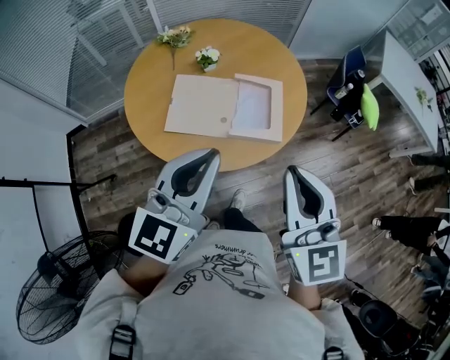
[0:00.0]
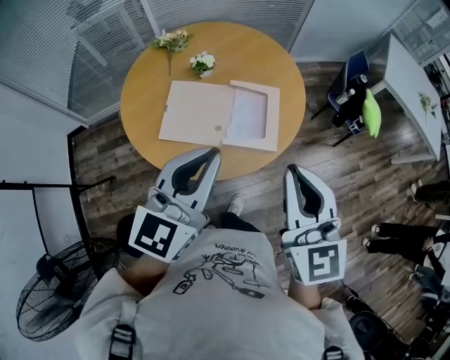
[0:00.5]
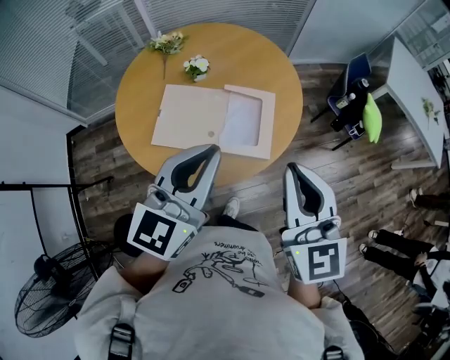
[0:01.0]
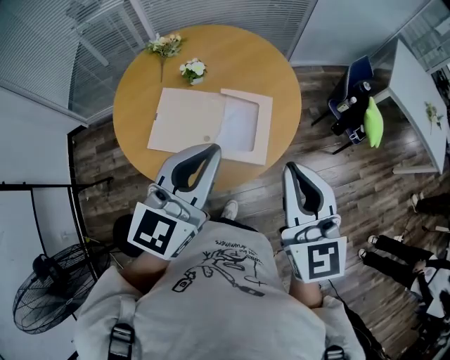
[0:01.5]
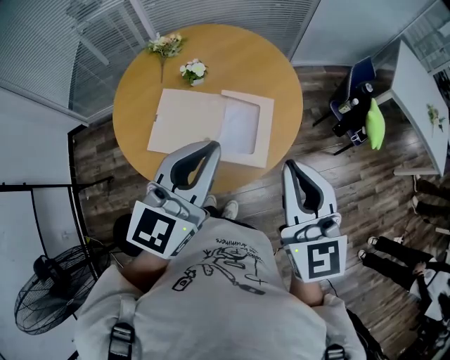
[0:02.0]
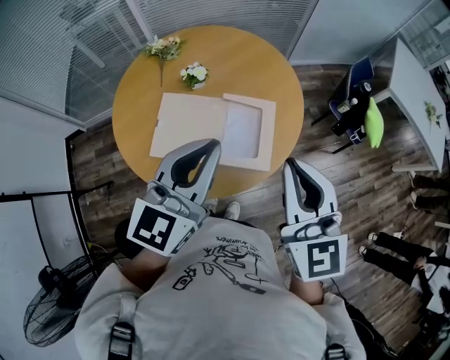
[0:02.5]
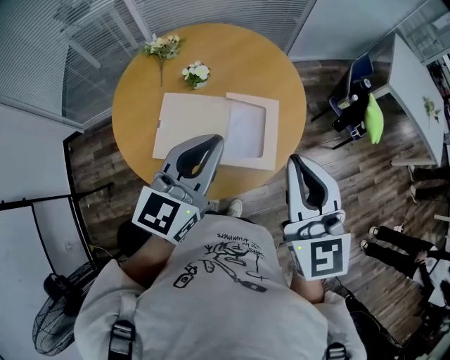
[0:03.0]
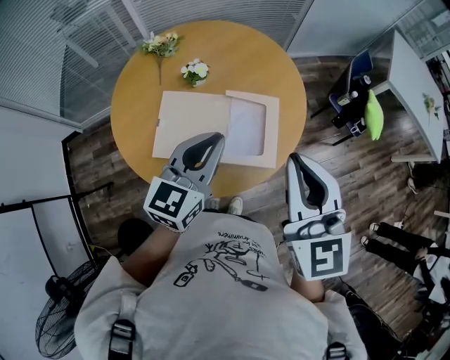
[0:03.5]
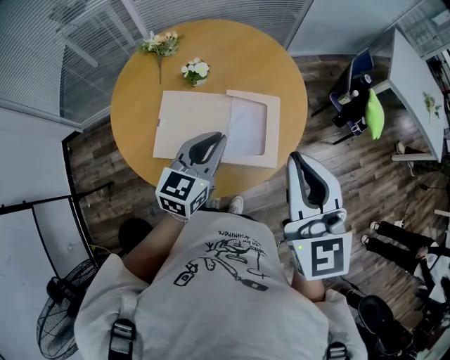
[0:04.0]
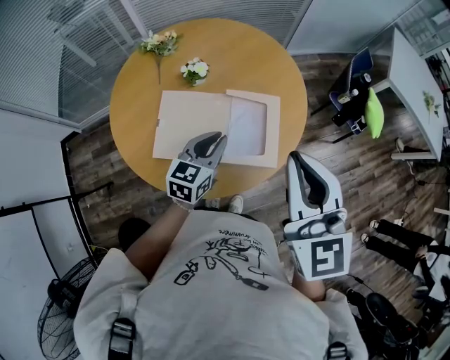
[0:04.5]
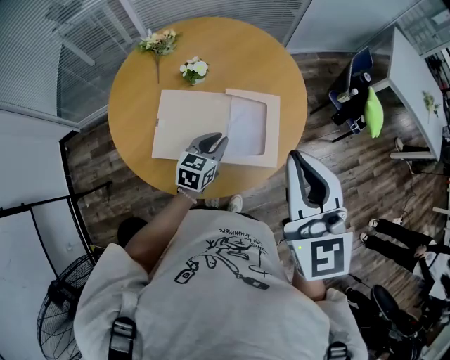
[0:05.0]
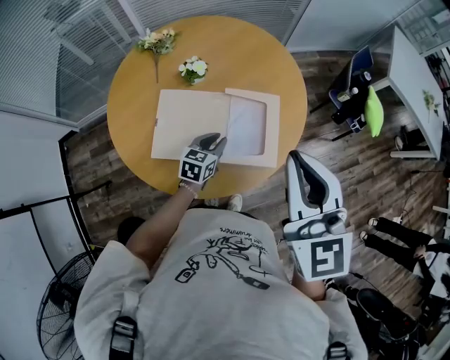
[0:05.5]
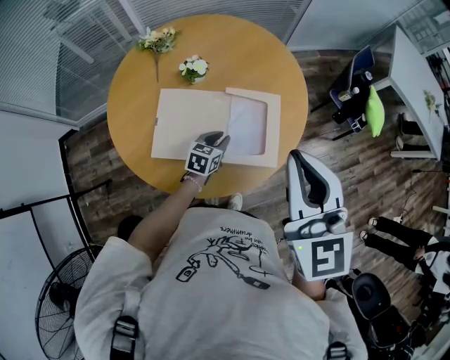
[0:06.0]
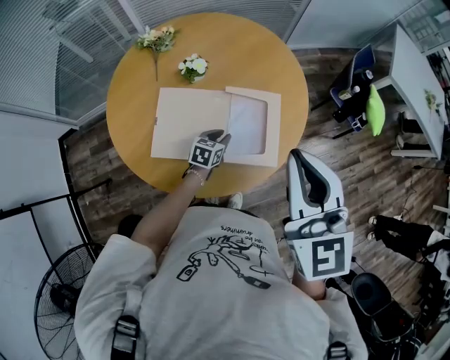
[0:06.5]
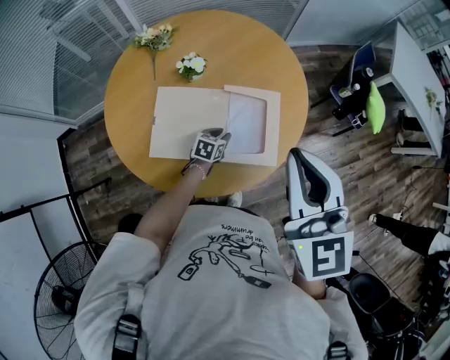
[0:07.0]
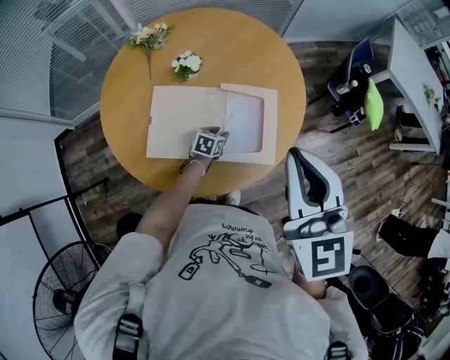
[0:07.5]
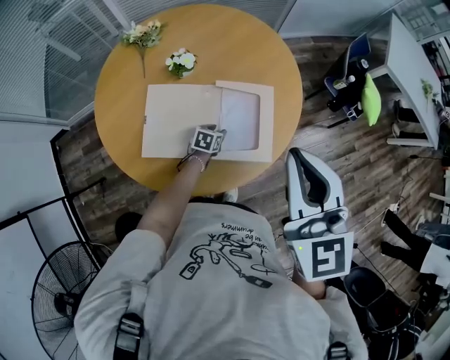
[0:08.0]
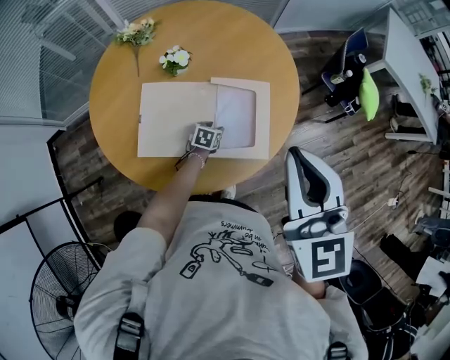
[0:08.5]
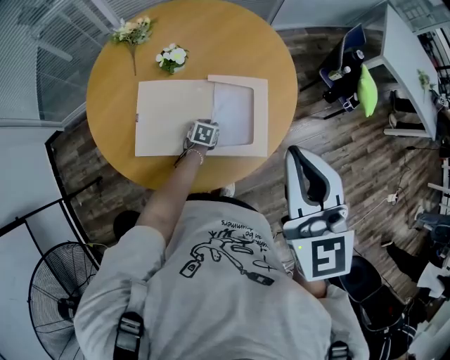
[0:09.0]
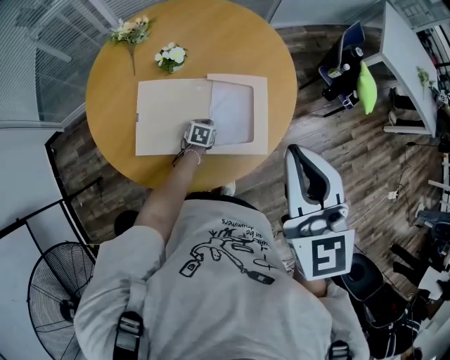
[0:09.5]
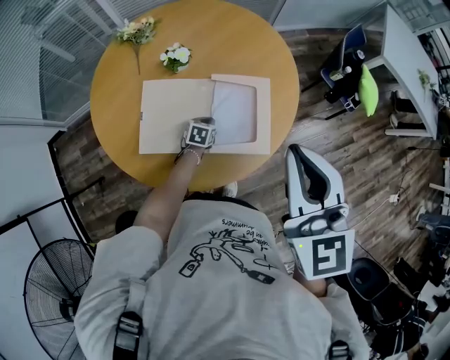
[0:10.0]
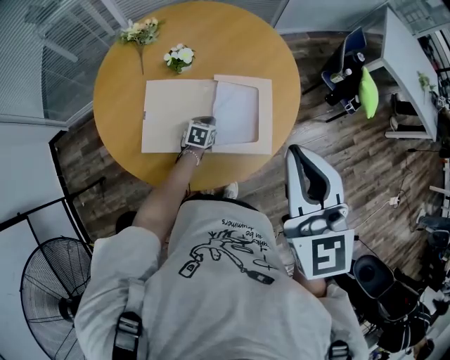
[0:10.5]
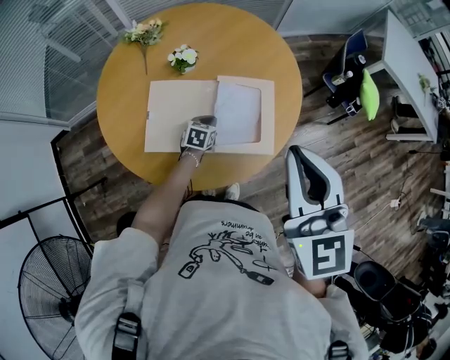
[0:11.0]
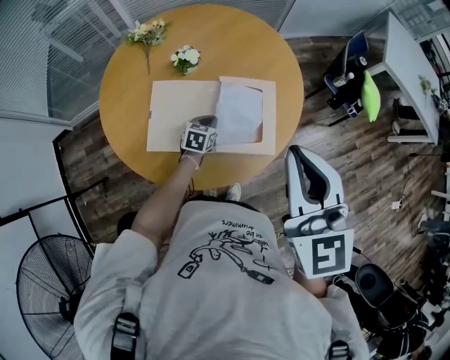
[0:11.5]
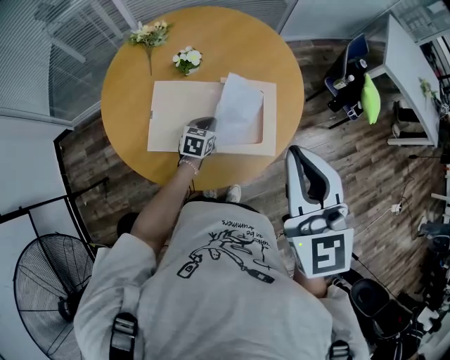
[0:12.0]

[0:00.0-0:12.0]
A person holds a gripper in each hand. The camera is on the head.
0.0 to 2.0 s: Both grippers move forward and to the right, some 20 cm.
2.0 to 4.0 s: The left gripper shifts approximately 20 cm downward, forward and to the left. The right gripper shifts approximately 5 cm to the left.
4.0 to 6.0 s: The left gripper shifts roughly 25 cm downward, and changes its angle by some 20 degrees.
6.0 to 8.0 s: The left gripper travels downward by some 15 cm.
8.0 to 10.0 s: The left gripper closes up.
10.0 to 12.0 s: The left gripper goes some 10 cm upward.

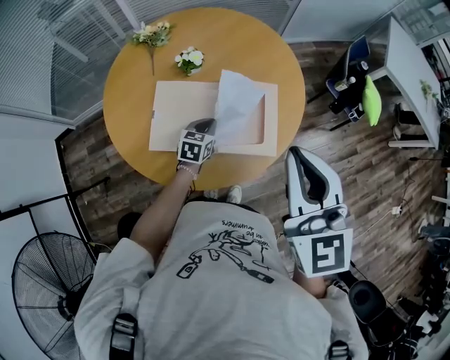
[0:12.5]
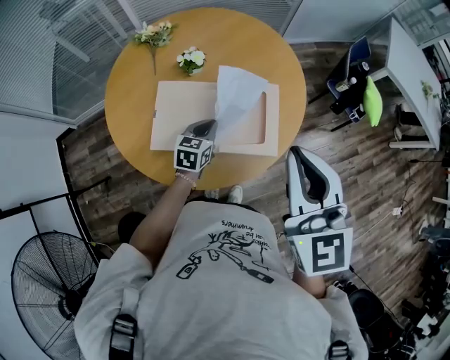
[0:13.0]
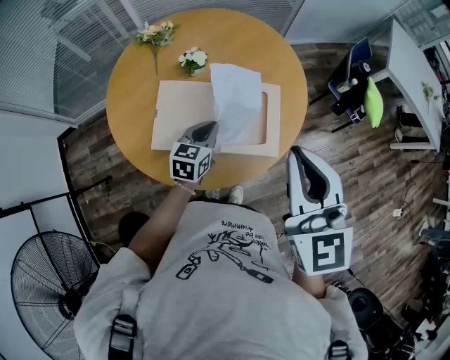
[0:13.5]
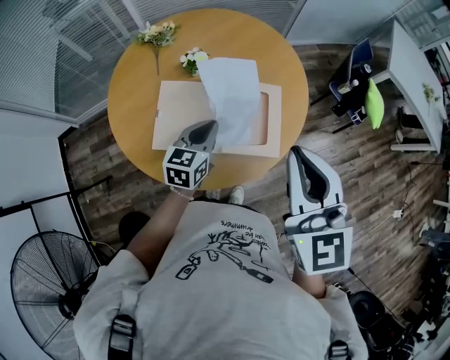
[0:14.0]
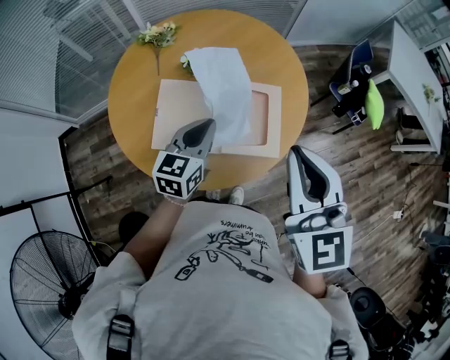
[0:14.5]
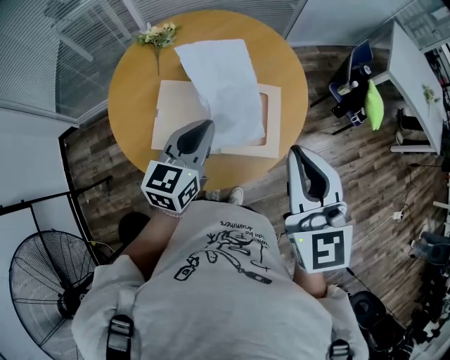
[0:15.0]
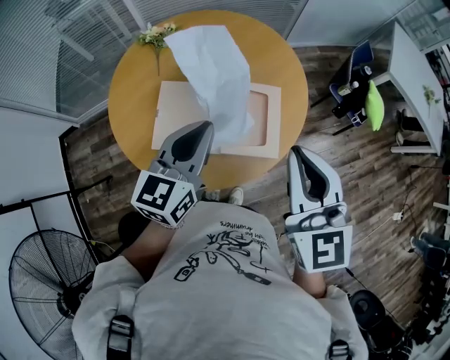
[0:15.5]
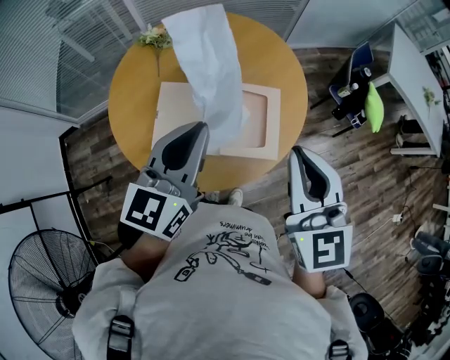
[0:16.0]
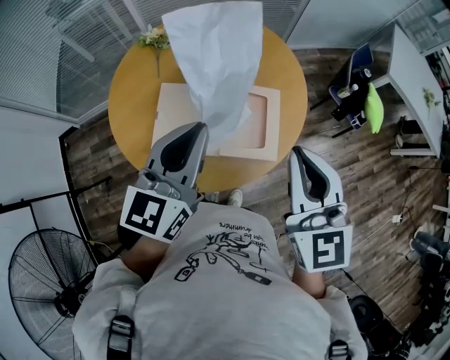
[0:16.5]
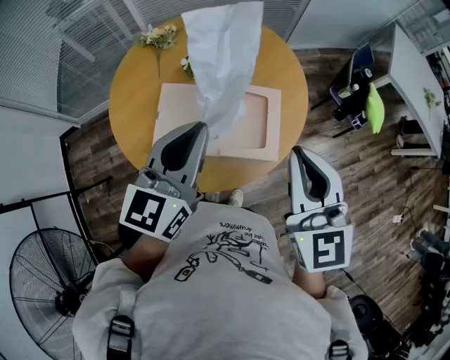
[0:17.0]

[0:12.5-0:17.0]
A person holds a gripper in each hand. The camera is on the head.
12.5 to 14.5 s: The left gripper travels upward by about 20 cm.
14.5 to 17.0 s: The left gripper travels upward by approximately 15 cm.

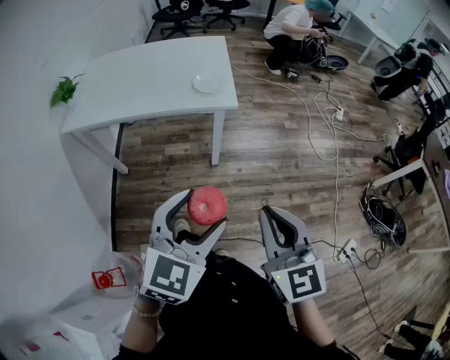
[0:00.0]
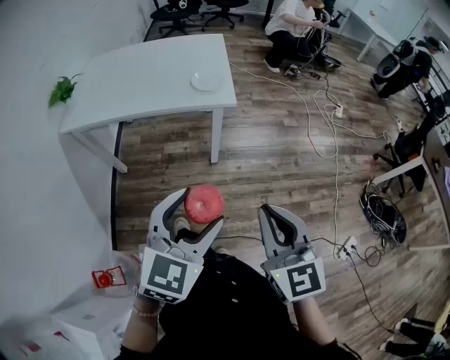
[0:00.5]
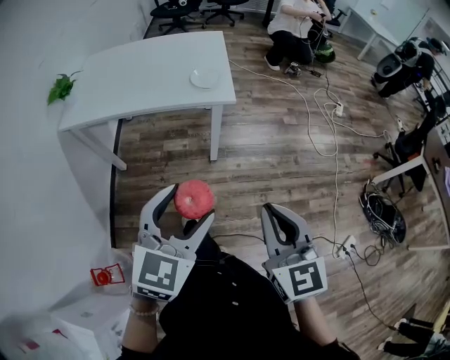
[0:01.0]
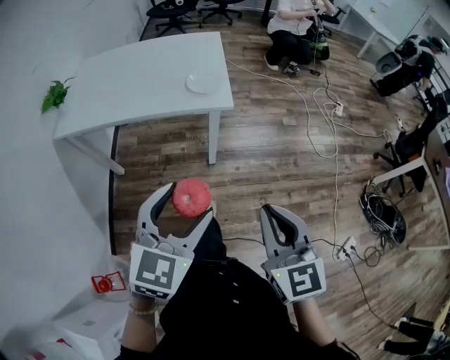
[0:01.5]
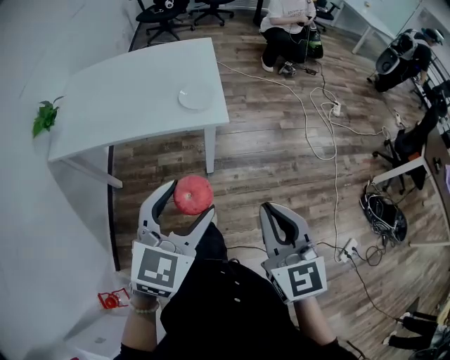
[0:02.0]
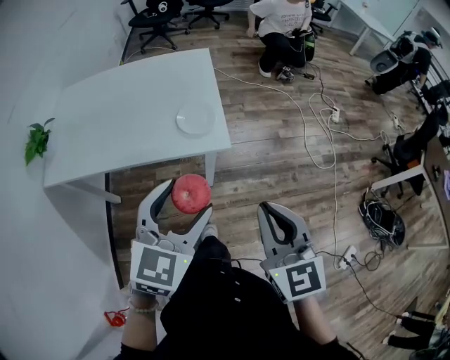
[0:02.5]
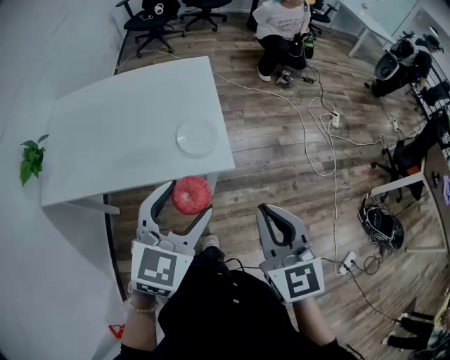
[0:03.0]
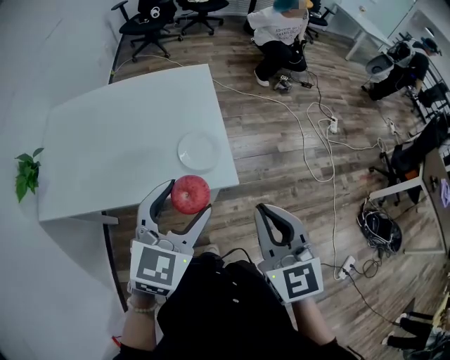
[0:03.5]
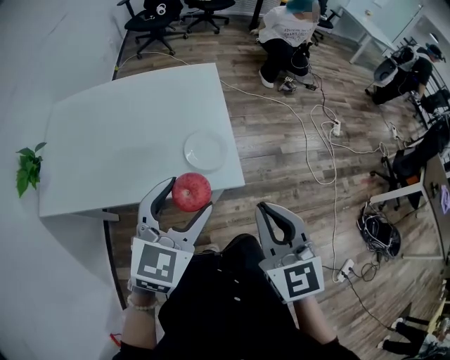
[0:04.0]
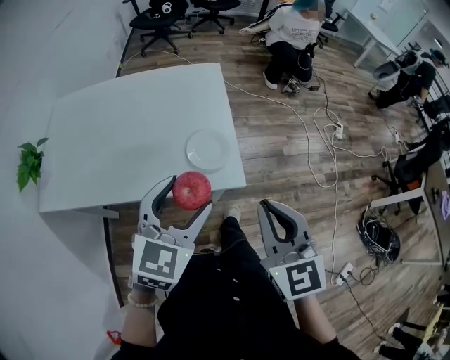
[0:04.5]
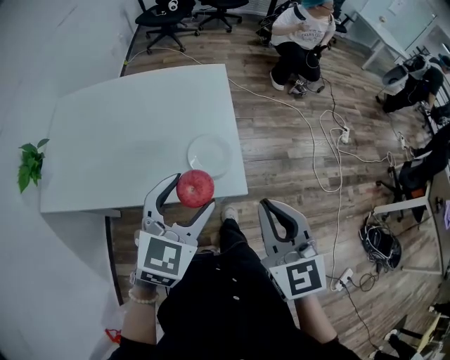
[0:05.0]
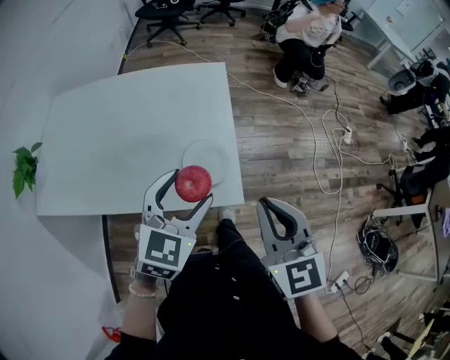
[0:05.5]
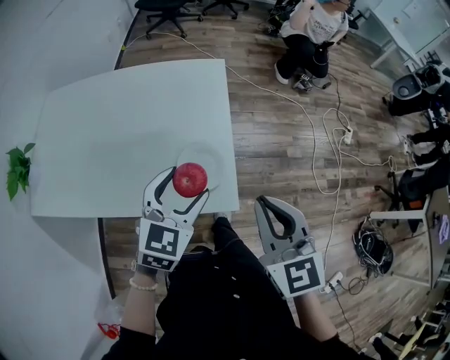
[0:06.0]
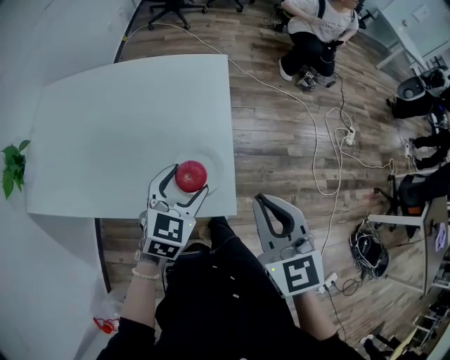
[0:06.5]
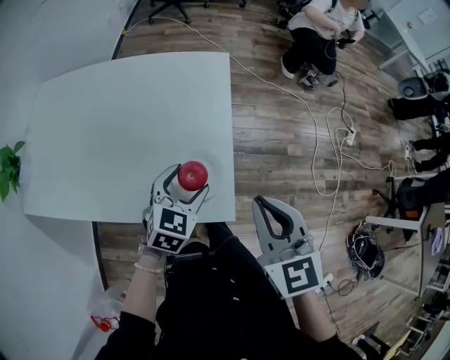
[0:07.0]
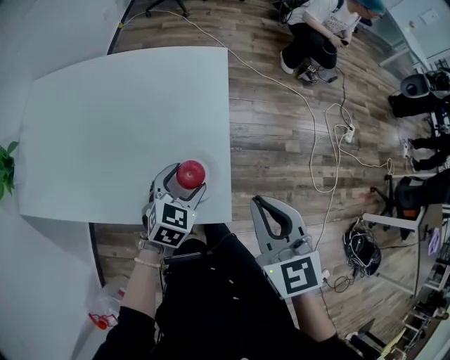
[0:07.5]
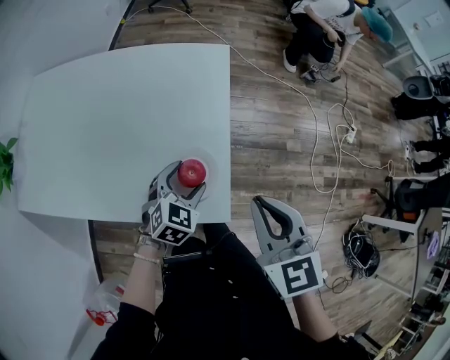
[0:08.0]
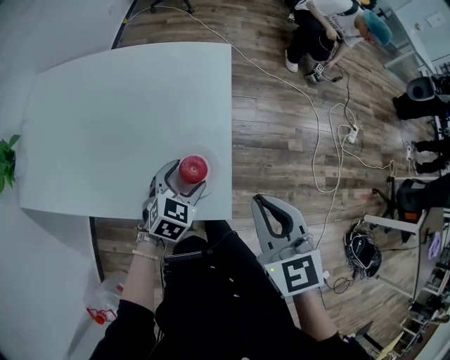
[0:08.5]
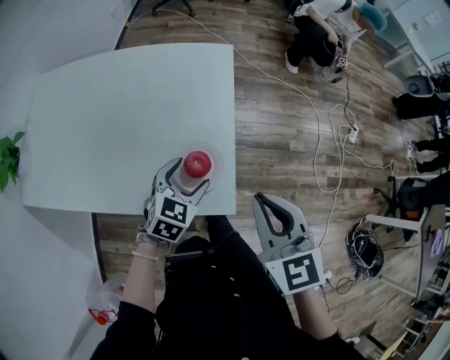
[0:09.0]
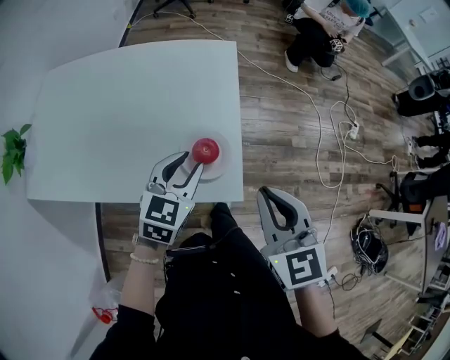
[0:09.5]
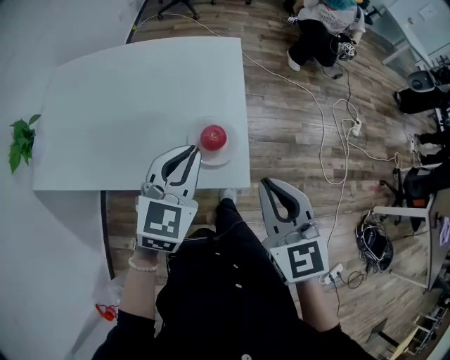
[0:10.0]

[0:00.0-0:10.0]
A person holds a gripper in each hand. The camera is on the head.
0.0 to 2.0 s: Both grippers travel together forward, some 15 cm.
2.0 to 4.0 s: The two grippers go approximately 25 cm forward.
4.0 to 6.0 s: The right gripper shifts roughly 15 cm forward; the left gripper heads forward and downward, covering approximately 15 cm.
6.0 to 8.0 s: The left gripper heads downward and forward, covering some 20 cm. The right gripper is displaced forward by approximately 10 cm.
8.0 to 10.0 s: The right gripper shifts some 10 cm backward, while the left gripper travels upward and backward by some 20 cm, swivels roughly 20 degrees, and closes.

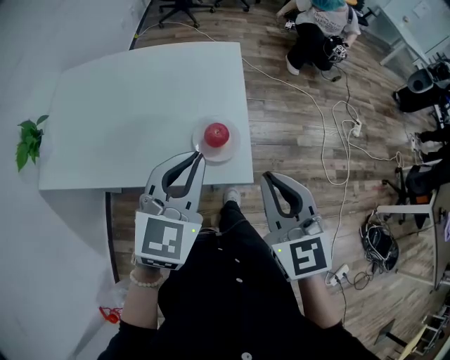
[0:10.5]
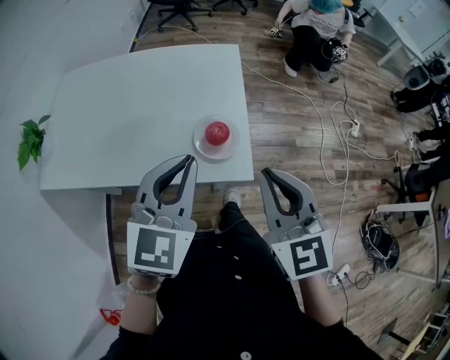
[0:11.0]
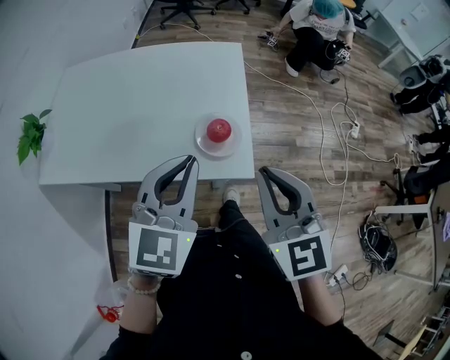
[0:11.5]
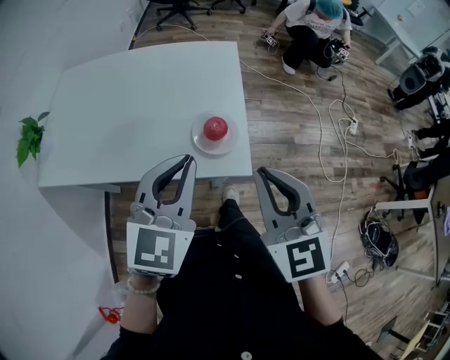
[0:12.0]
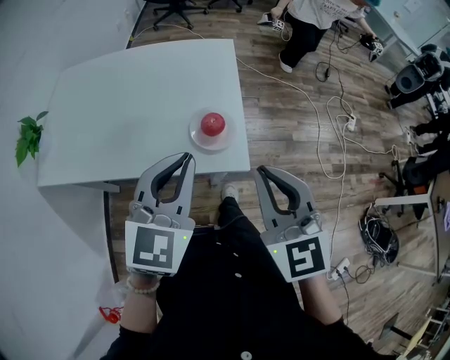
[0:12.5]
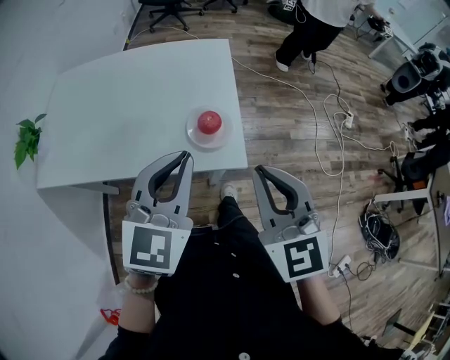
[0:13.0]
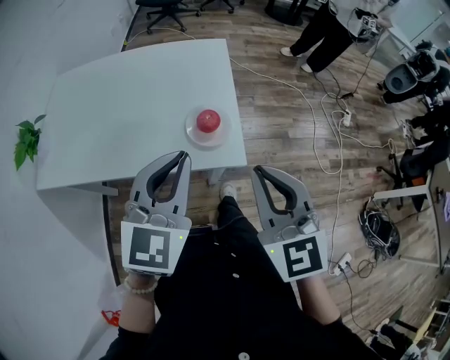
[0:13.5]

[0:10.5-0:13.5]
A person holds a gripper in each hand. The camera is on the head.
10.5 to 12.0 s: The left gripper moves roughly 5 cm.
12.0 to 13.5 s: There are only small adjustments of the grippers.
